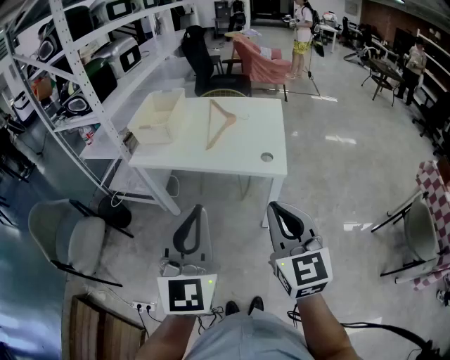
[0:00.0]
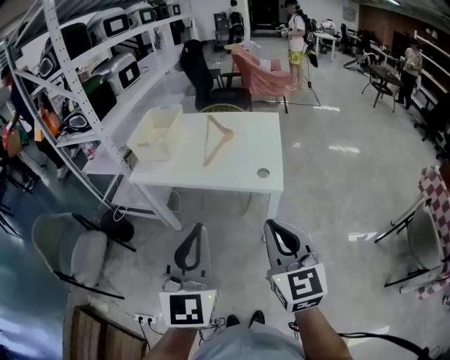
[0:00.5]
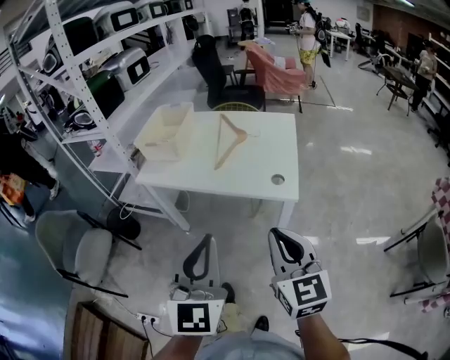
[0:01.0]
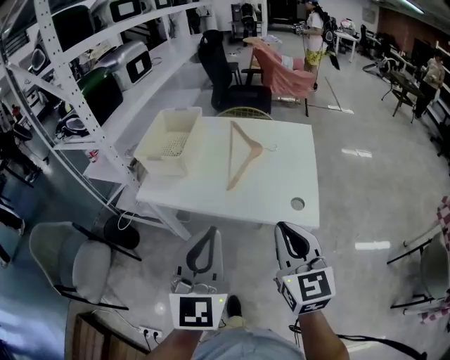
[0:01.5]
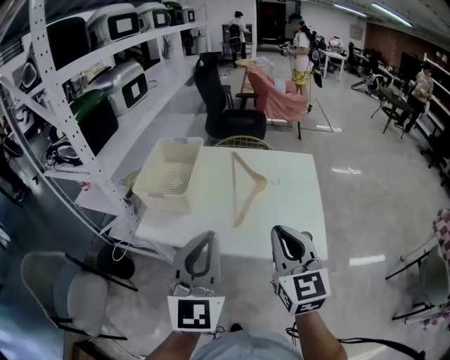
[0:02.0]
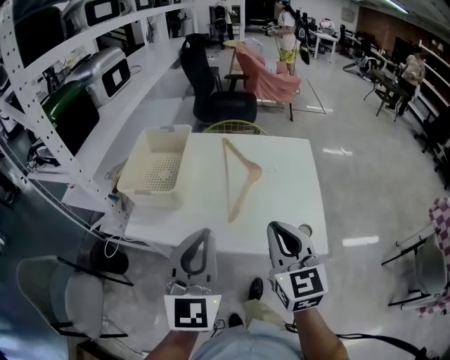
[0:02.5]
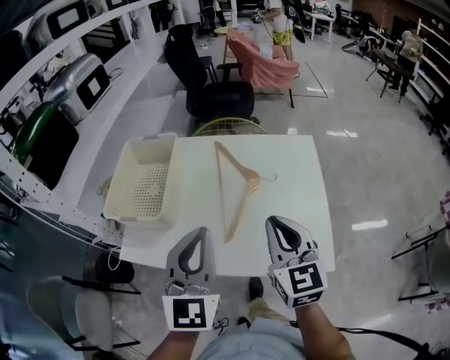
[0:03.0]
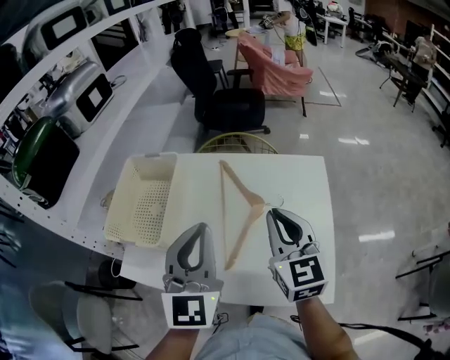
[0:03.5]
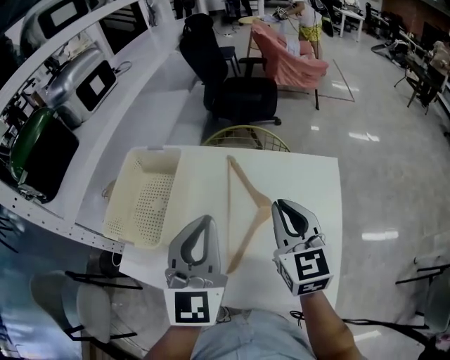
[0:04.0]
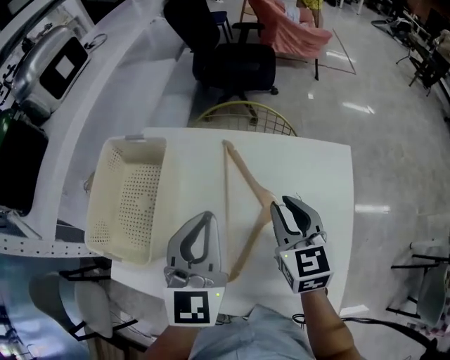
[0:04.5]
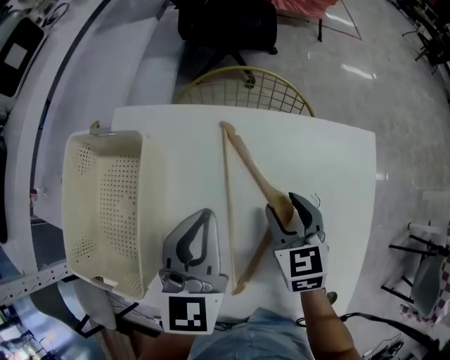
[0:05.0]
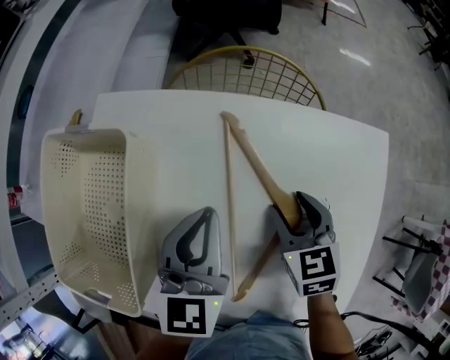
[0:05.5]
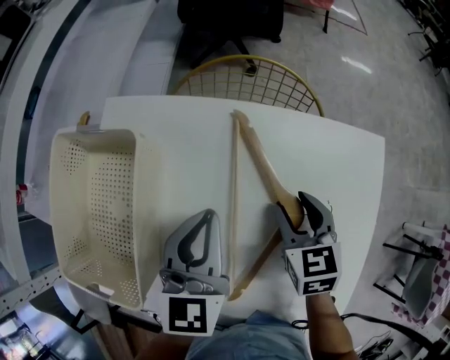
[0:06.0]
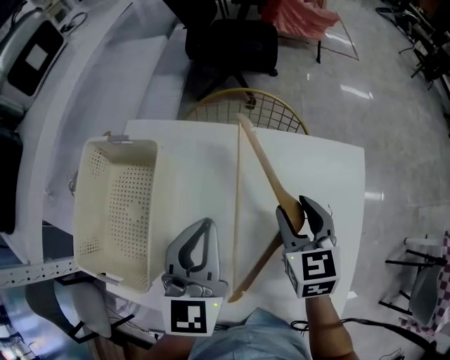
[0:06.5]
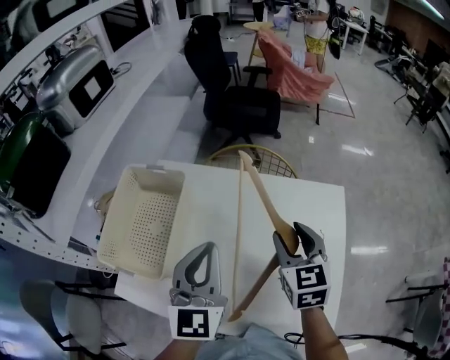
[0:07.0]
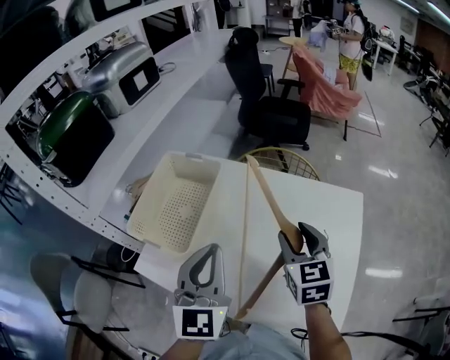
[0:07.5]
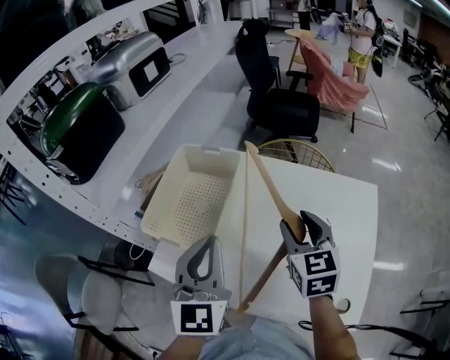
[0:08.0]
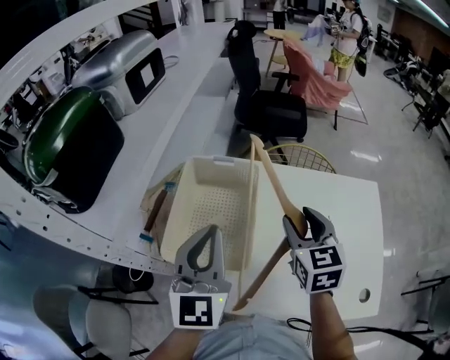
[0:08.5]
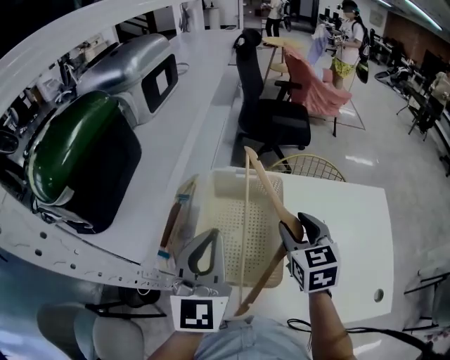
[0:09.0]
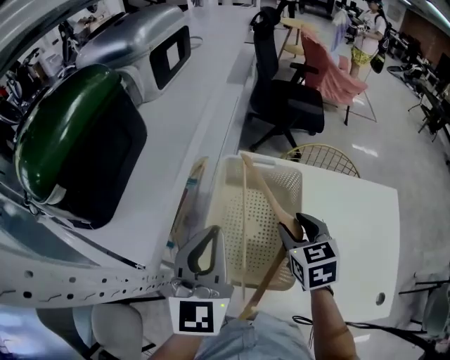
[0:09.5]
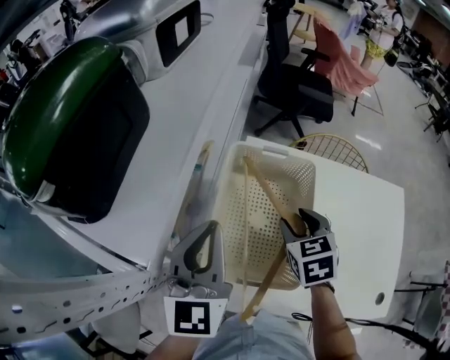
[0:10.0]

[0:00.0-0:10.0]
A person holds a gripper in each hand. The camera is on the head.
0:00.0 to 0:02.0: The two grippers go approximately 30 cm forward.
0:02.0 to 0:04.0: The grippers both shift forward by approximately 30 cm.
0:04.0 to 0:06.0: Both grippers travel together downward and forward, about 25 cm. The left gripper swivels about 30 degrees. Meanwhile the right gripper points its fingers some 30 degrees further downward, and opens its fingers.
0:06.0 to 0:08.0: The right gripper travels upward, to the left and backward by about 25 cm, and swivels roughly 20 degrees. Meanwhile the left gripper travels backward, upward and to the left by roughly 25 cm, and swivels roughly 30 degrees.
0:08.0 to 0:10.0: The grippers both shift to the left and forward by about 25 cm. The right gripper changes its angle by approximately 20 degrees.

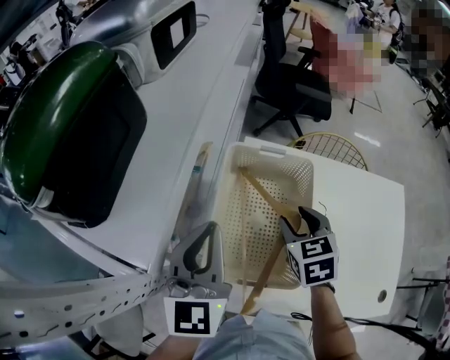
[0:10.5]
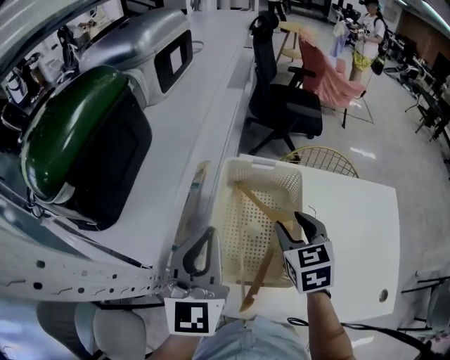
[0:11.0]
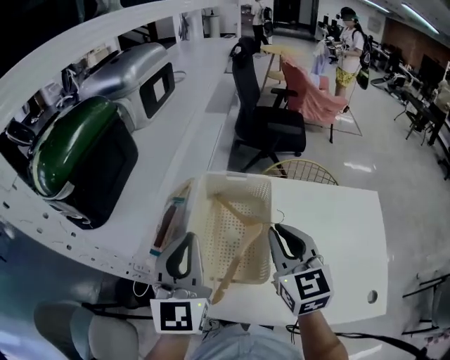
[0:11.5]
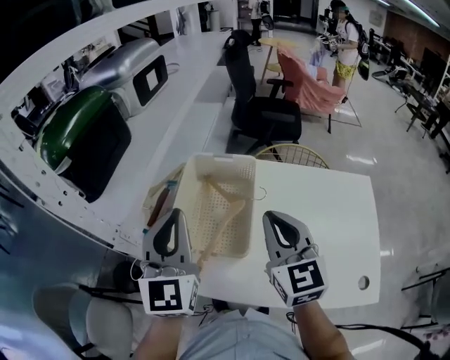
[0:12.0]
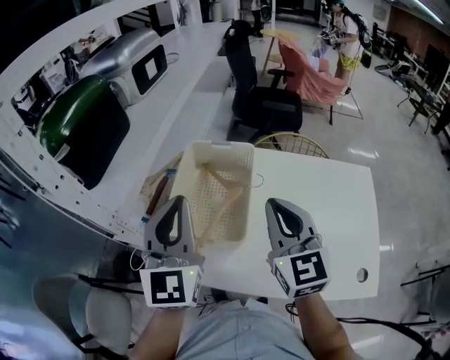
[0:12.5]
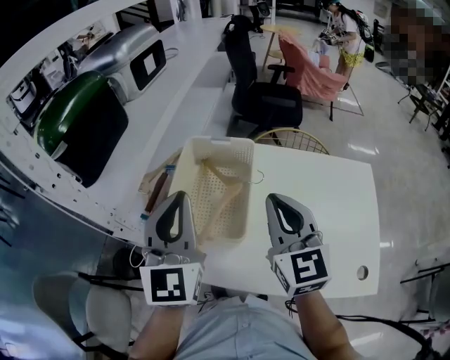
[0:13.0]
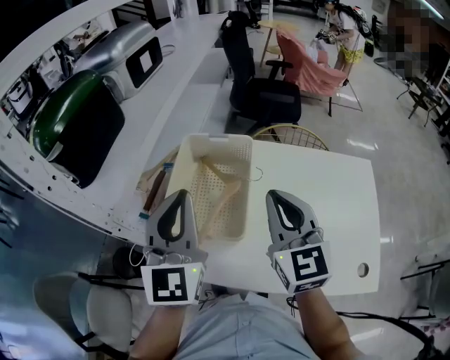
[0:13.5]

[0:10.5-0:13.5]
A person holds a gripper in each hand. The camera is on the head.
0:10.5 to 0:12.0: The right gripper heads upward, backward and to the right, covering some 20 cm, points its fingers roughly 40 degrees further upward, and closes. Meanwhile the left gripper moves backward, upward and to the right, about 15 cm.
0:12.0 to 0:13.5: The grippers move only a little.

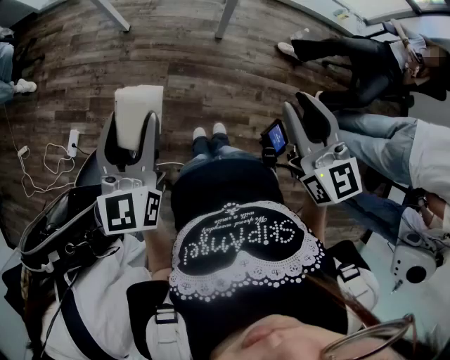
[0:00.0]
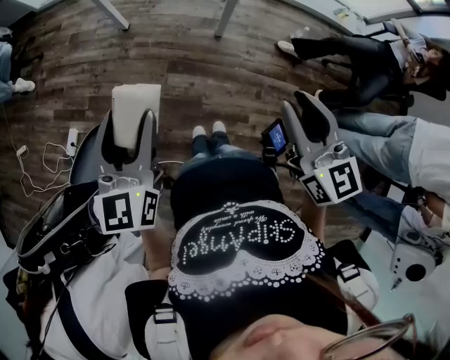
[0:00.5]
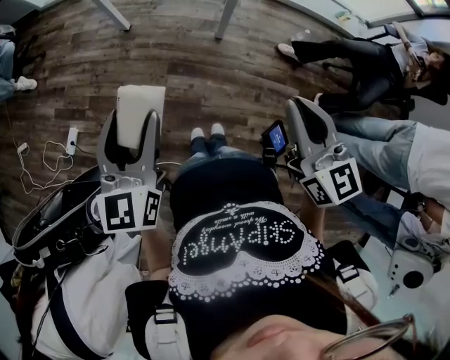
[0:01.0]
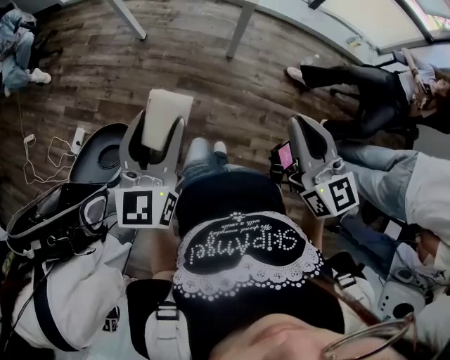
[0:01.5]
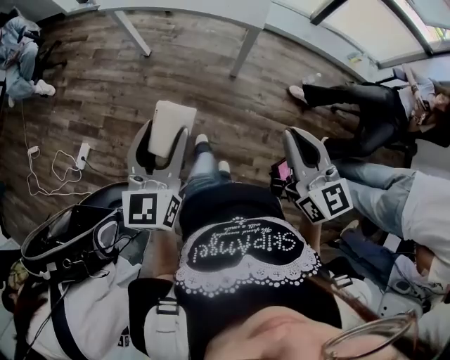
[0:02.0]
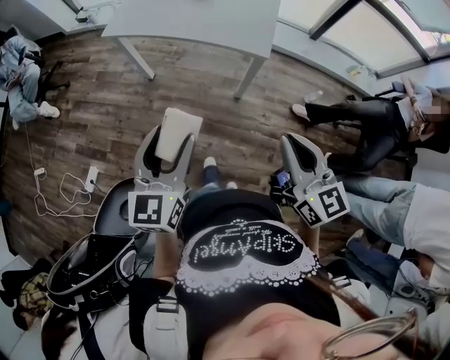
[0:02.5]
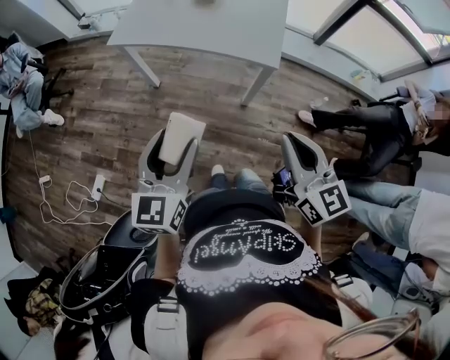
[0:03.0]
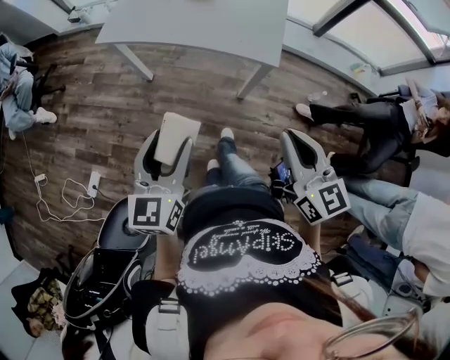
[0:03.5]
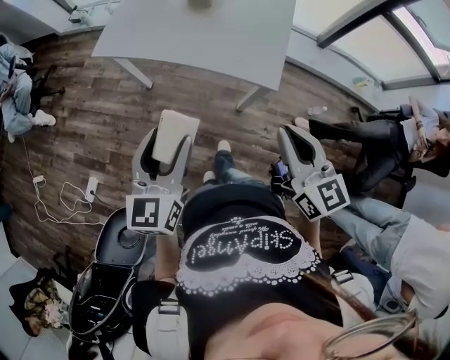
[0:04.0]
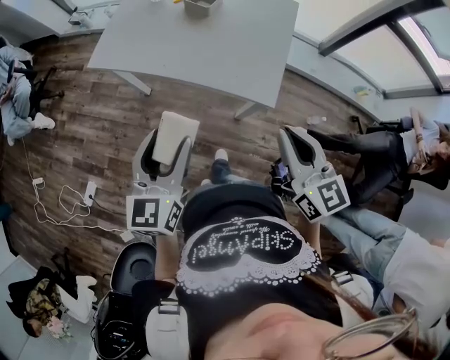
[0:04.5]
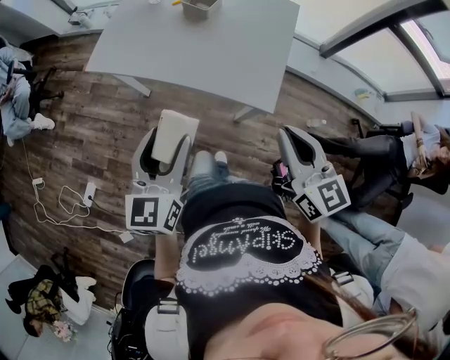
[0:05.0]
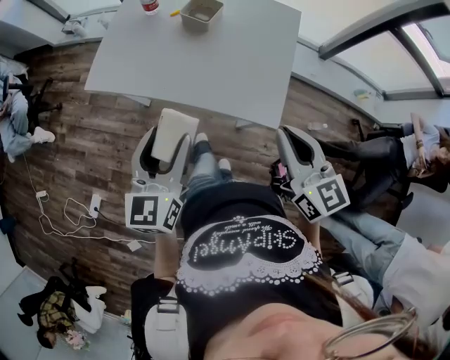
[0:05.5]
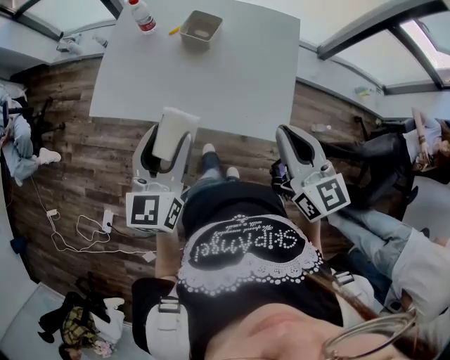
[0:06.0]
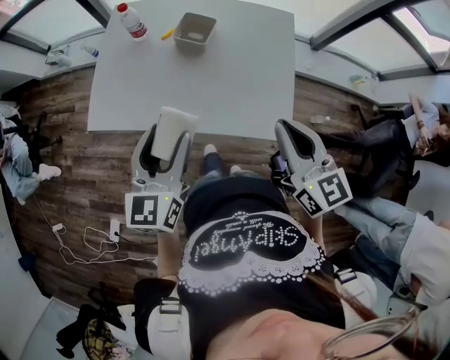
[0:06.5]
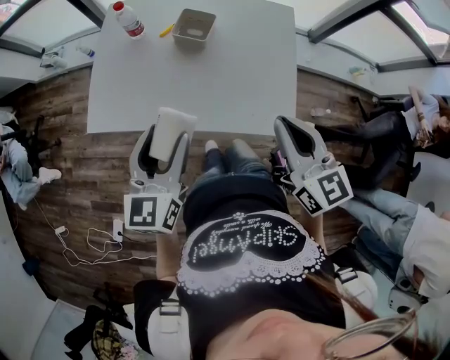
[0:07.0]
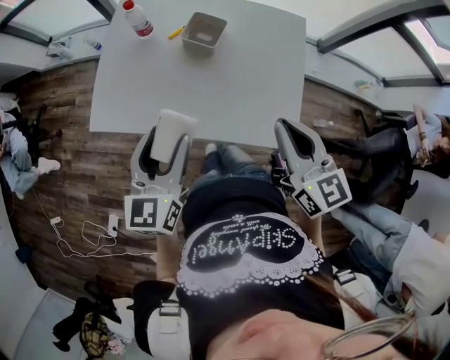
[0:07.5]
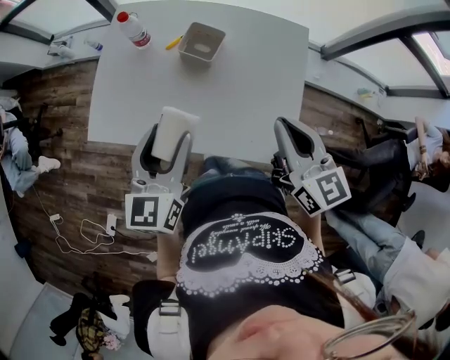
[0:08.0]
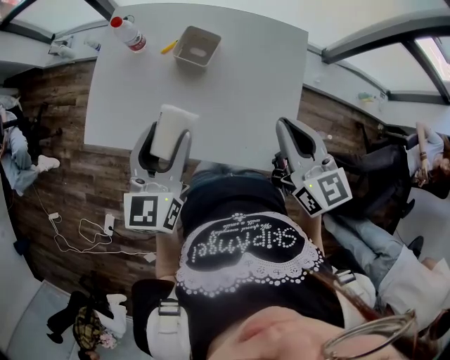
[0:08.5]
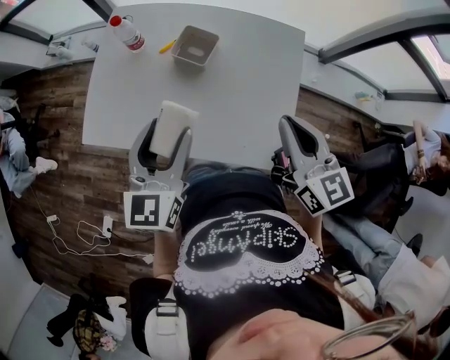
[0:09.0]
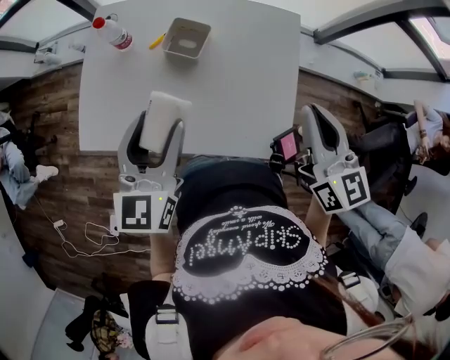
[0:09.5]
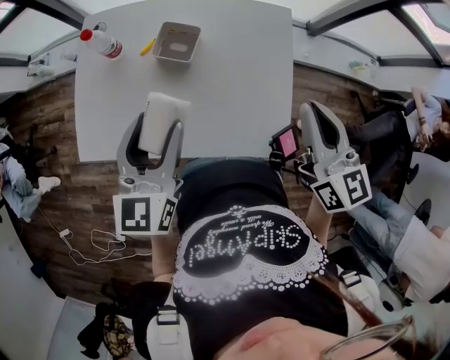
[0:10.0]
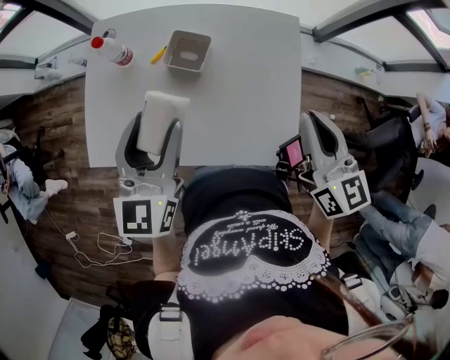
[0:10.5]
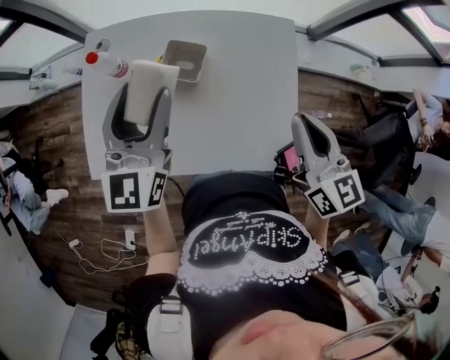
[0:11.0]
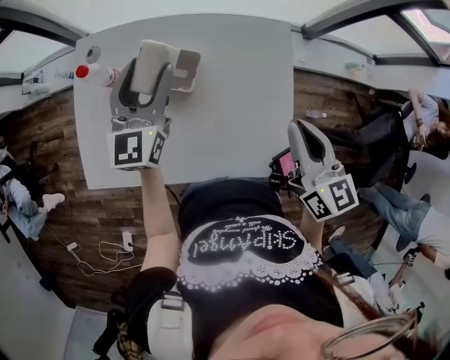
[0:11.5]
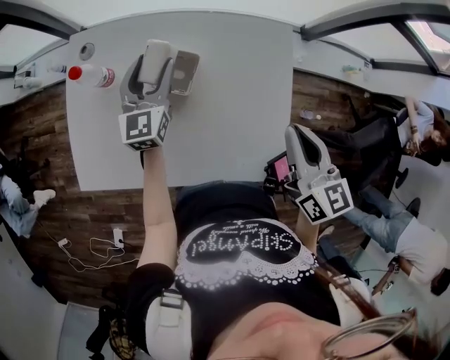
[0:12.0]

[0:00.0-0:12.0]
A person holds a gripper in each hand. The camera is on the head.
0:00.0 to 0:02.0: The right gripper heads forward, covering roughly 5 cm, and closes its fingers. The left gripper moves forward and to the right, some 10 cm.
0:02.0 to 0:04.0: The two grippers go about 25 cm forward.
0:04.0 to 0:06.0: The two grippers go some 25 cm forward.
0:06.0 to 0:08.0: Both grippers move forward, about 10 cm.
0:08.0 to 0:10.0: The left gripper is displaced forward by roughly 5 cm. The right gripper is displaced to the right by approximately 5 cm.
0:10.0 to 0:12.0: The right gripper travels forward and downward by approximately 10 cm. The left gripper shifts some 25 cm forward and downward.

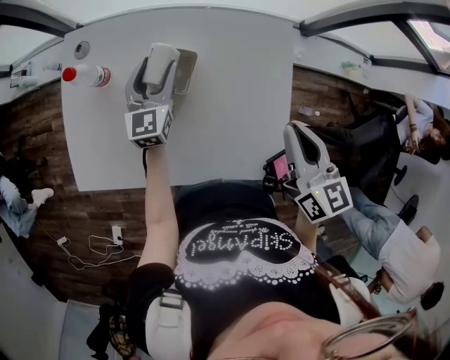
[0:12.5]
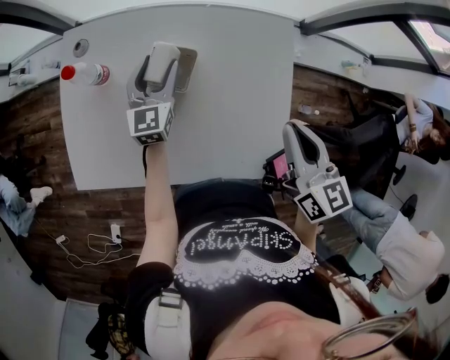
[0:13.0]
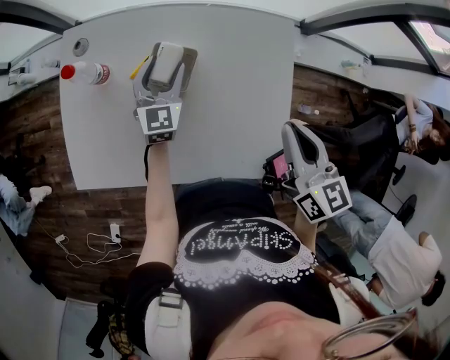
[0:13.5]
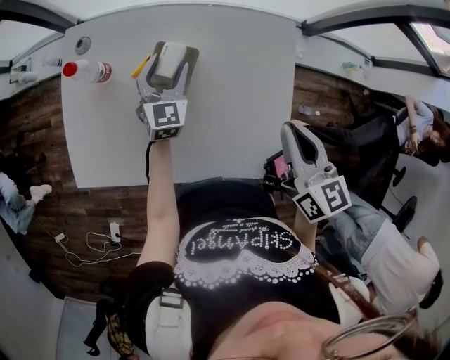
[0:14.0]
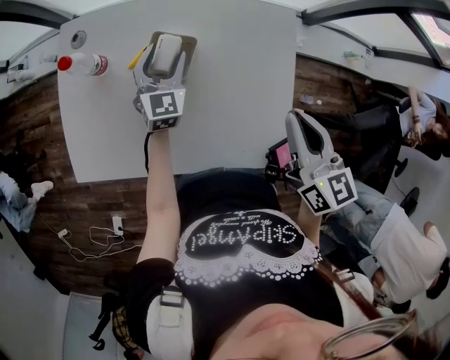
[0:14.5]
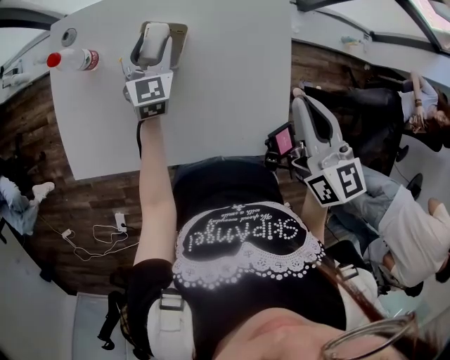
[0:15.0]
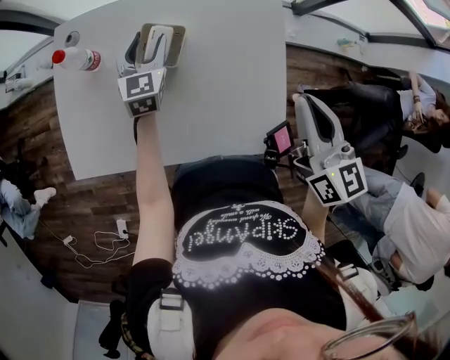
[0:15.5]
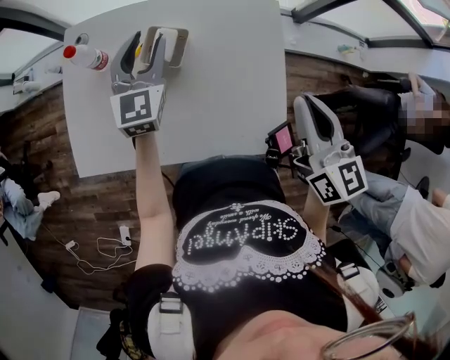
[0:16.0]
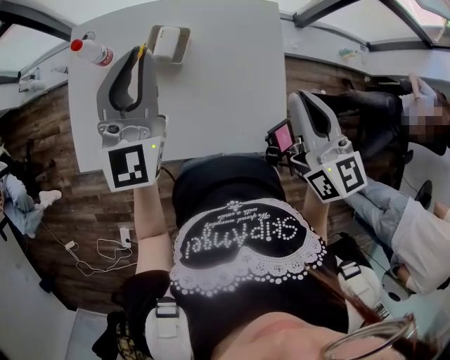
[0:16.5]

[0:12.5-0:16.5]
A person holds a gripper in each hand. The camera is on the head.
0:12.5 to 0:14.5: The grippers stay close to where they were, moving slightly.
0:14.5 to 0:16.5: The left gripper goes some 30 cm upward and backward, changes its angle by some 30 degrees, and closes; the right gripper moves upward and backward, some 10 cm.
